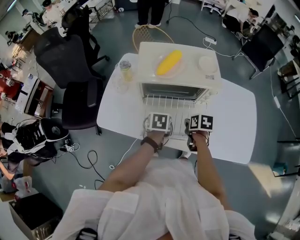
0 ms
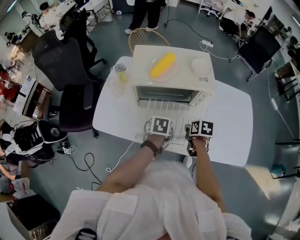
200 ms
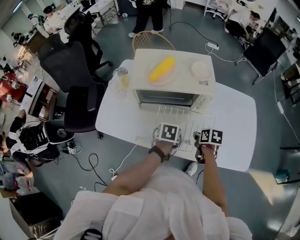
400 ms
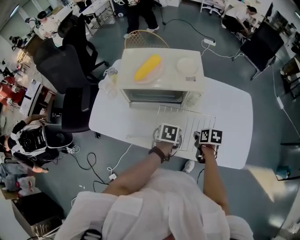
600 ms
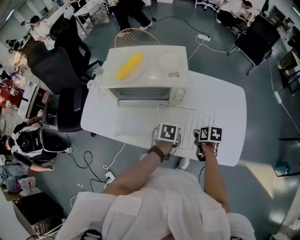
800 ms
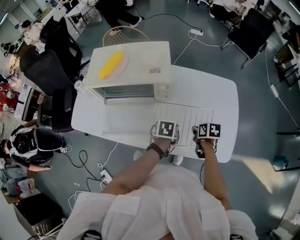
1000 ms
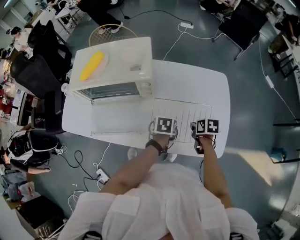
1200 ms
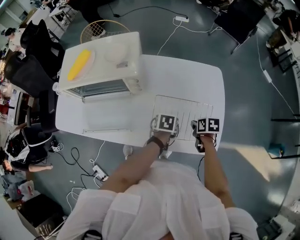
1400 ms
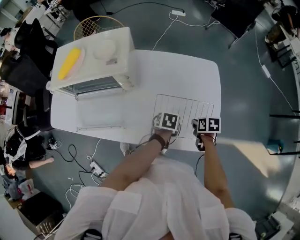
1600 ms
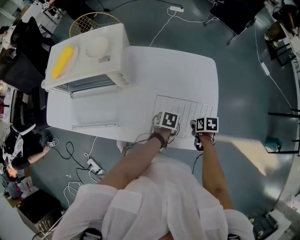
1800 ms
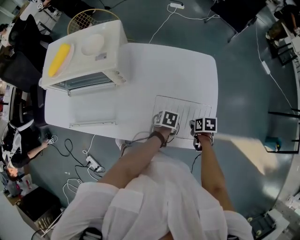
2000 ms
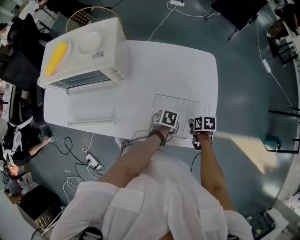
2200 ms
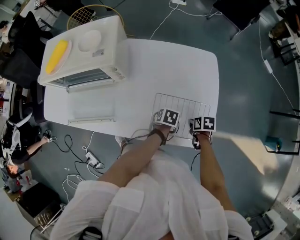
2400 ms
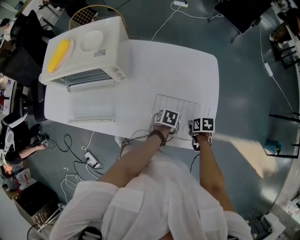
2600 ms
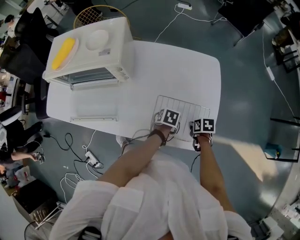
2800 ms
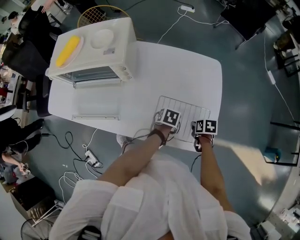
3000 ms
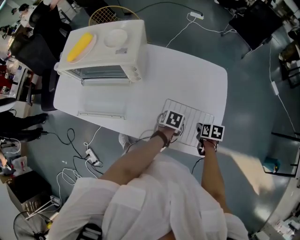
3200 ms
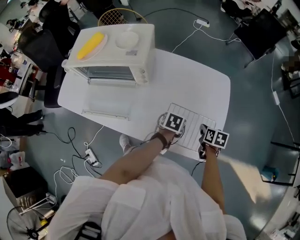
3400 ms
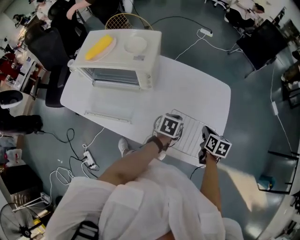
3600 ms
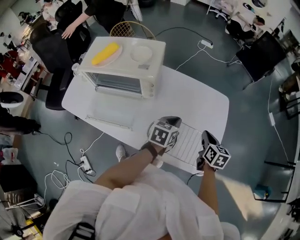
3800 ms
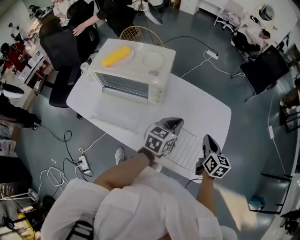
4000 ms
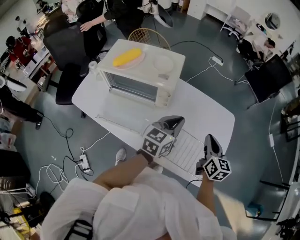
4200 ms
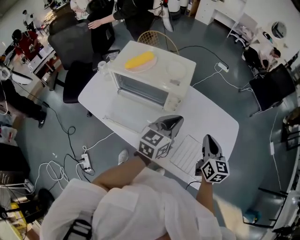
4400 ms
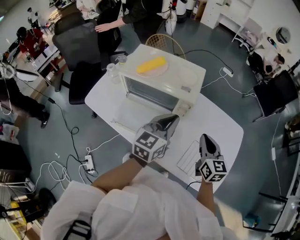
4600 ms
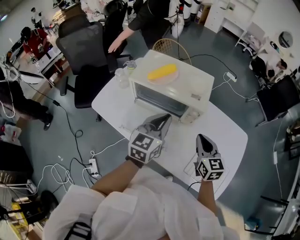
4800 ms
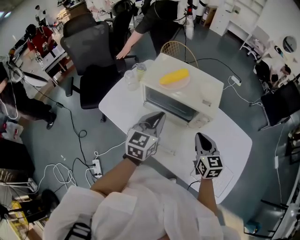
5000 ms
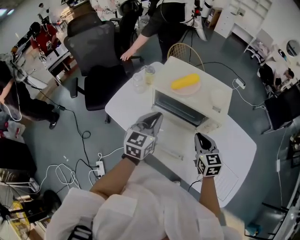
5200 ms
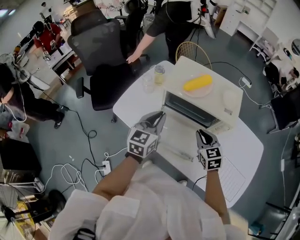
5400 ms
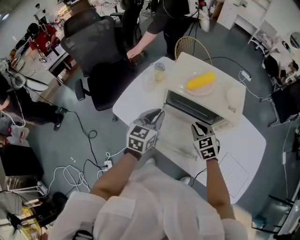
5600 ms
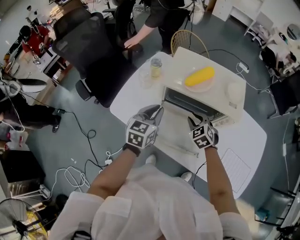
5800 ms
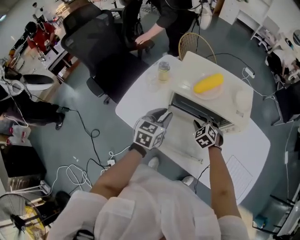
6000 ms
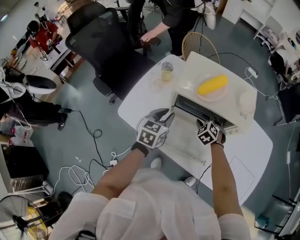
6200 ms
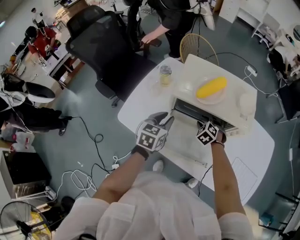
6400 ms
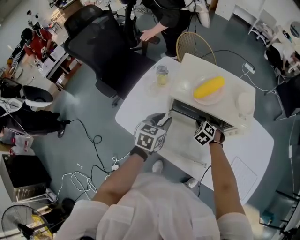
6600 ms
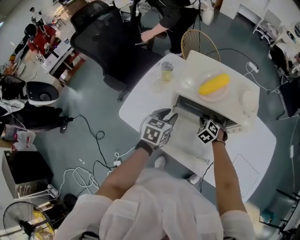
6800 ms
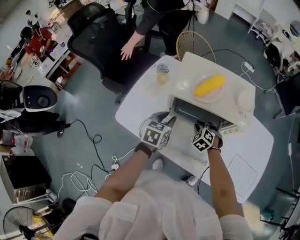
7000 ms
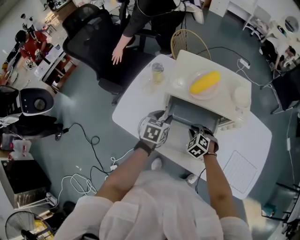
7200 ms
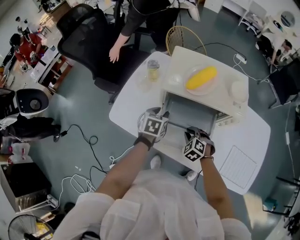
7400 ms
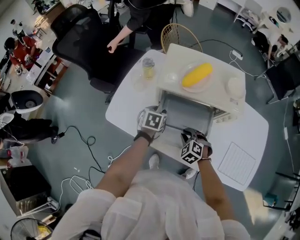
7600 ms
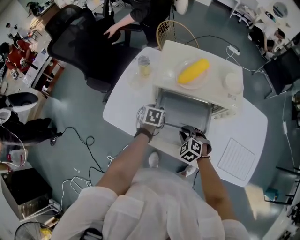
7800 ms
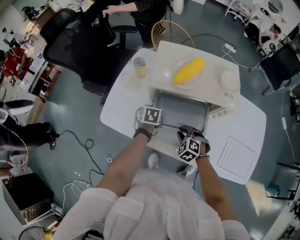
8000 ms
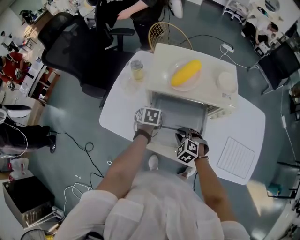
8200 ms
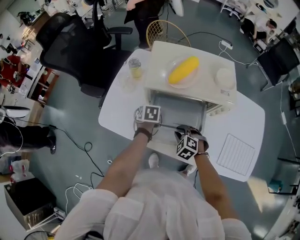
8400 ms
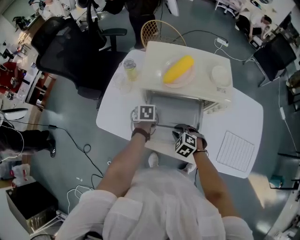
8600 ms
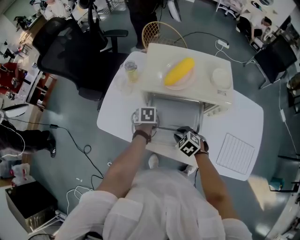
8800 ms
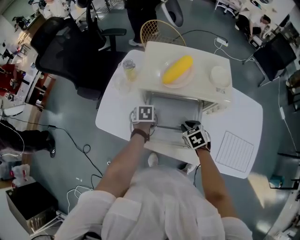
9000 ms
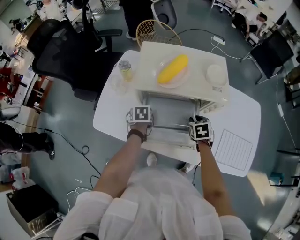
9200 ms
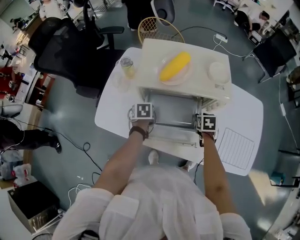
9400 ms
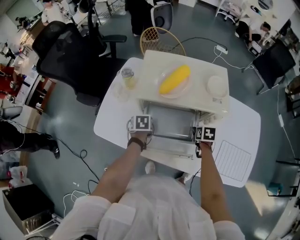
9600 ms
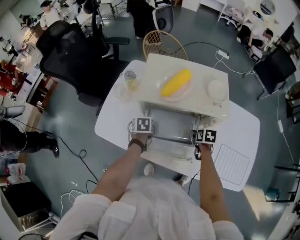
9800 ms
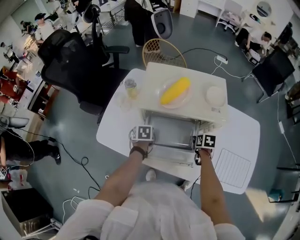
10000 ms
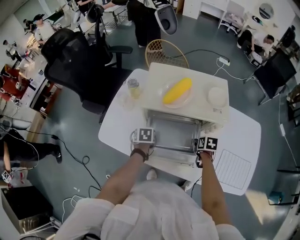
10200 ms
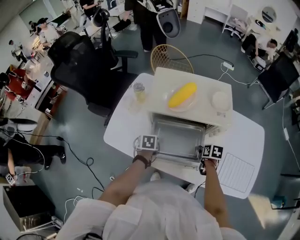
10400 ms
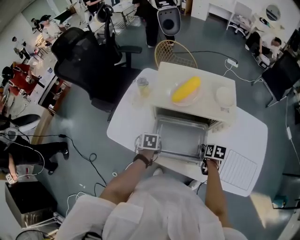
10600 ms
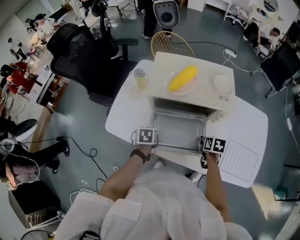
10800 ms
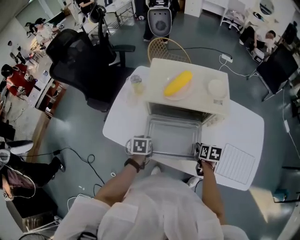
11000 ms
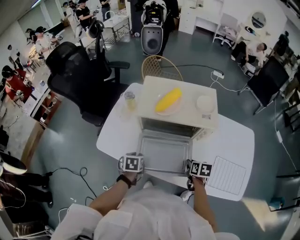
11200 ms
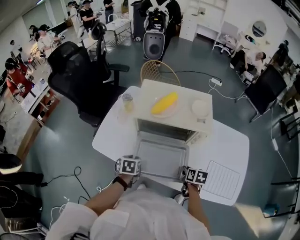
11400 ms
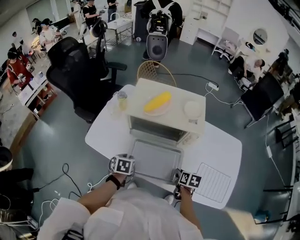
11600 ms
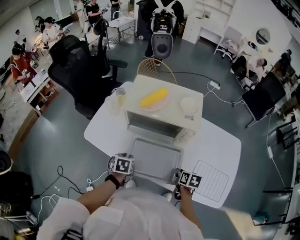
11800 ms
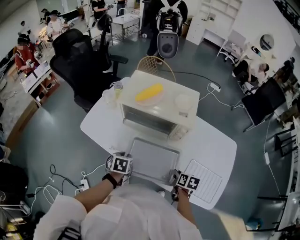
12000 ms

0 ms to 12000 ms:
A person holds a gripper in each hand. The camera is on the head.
0 ms to 1600 ms: Both grippers are carried to the right, some 50 cm.
1600 ms to 3000 ms: The right gripper moves roughly 5 cm.
3000 ms to 4400 ms: The grippers both shift upward and to the left by roughly 35 cm. The left gripper points its fingers approximately 60 degrees further upward. The right gripper angles its fingers upward, by roughly 50 degrees.
4400 ms to 6000 ms: The left gripper is displaced to the left by approximately 35 cm, and turns by some 20 degrees; the right gripper is displaced to the left, forward and downward by some 40 cm, rotates around the line of its fingers by roughly 50 degrees, counterclockwise from behind, and opens.
6000 ms to 7600 ms: The right gripper is displaced backward and downward by about 10 cm. The left gripper is displaced downward by roughly 15 cm, and swivels some 20 degrees.
7600 ms to 9000 ms: The right gripper moves to the right, some 5 cm, and rotates approximately 40 degrees.
9000 ms to 10400 ms: The right gripper is displaced to the right by roughly 10 cm, and twists approximately 40 degrees clockwise, seen from behind.
10400 ms to 12000 ms: The right gripper moves backward and to the right, some 15 cm, while the left gripper goes some 20 cm backward, to the right and upward.

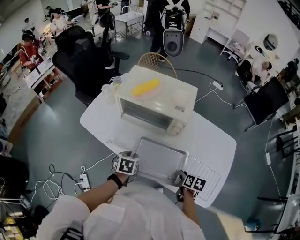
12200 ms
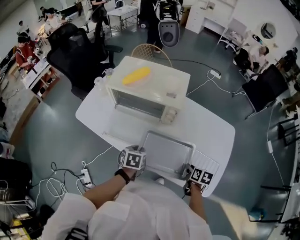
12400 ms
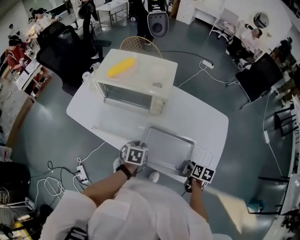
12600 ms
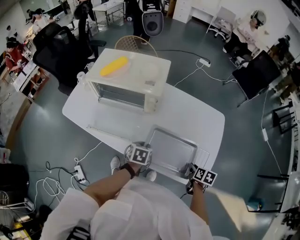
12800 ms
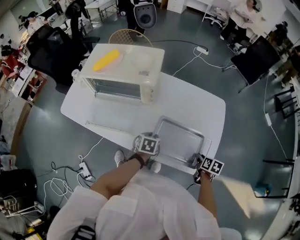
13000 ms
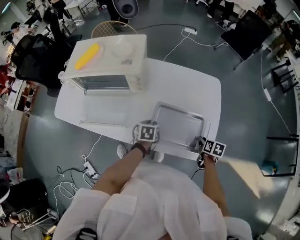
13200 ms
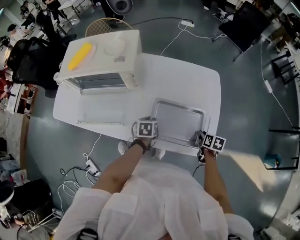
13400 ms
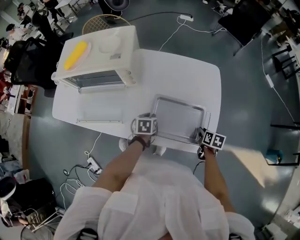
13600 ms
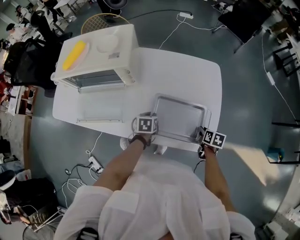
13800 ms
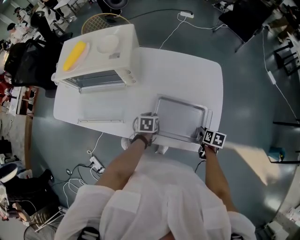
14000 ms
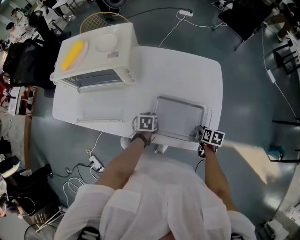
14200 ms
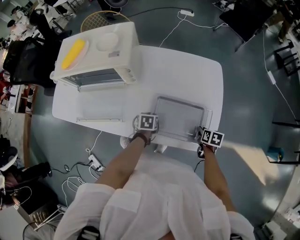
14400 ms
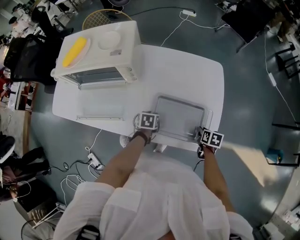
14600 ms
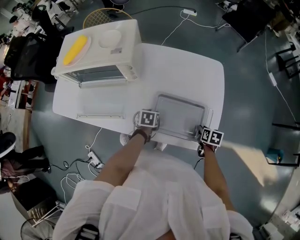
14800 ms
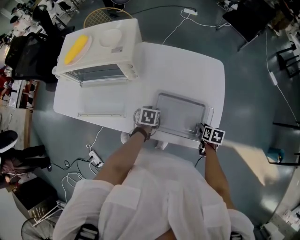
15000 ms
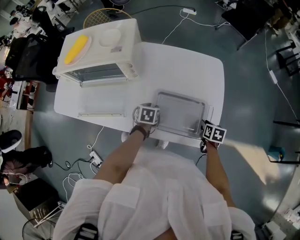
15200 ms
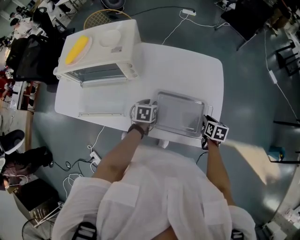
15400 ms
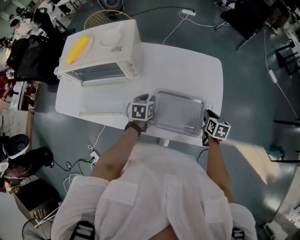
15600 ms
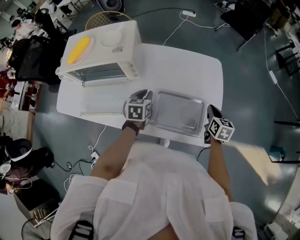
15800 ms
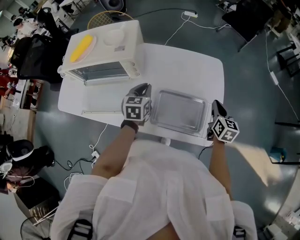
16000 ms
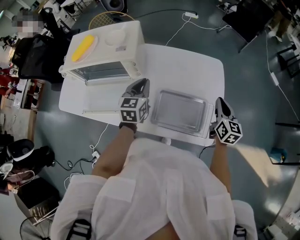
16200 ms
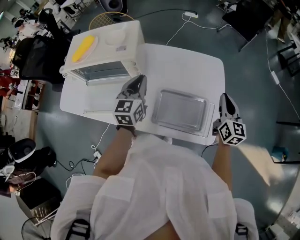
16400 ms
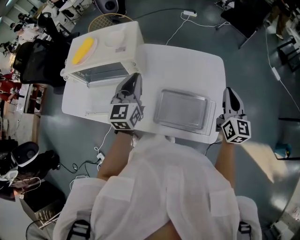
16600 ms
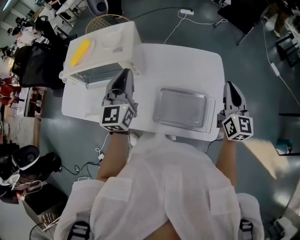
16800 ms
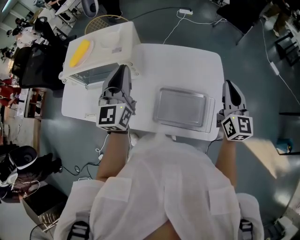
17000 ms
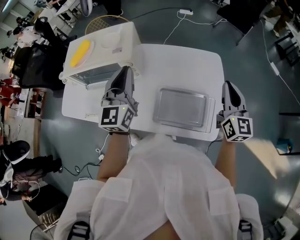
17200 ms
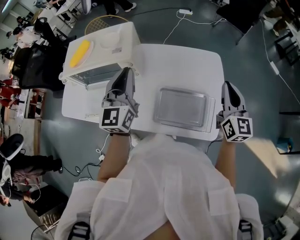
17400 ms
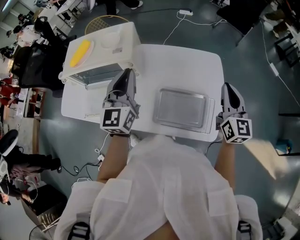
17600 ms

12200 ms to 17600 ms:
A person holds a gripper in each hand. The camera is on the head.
12200 ms to 13600 ms: The grippers both shift to the right by about 30 cm.
13600 ms to 15000 ms: The grippers stay close to where they were, moving slightly.
15000 ms to 16200 ms: Both grippers move upward, roughly 25 cm. The right gripper tilts its fingers about 40 degrees upward, and closes; the left gripper tilts its fingers some 40 degrees upward, and closes.
16200 ms to 17600 ms: Both grippers move upward, approximately 15 cm. The left gripper changes its angle by about 30 degrees.

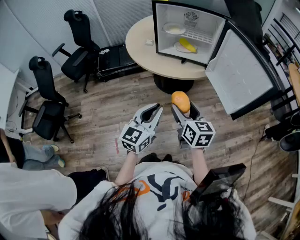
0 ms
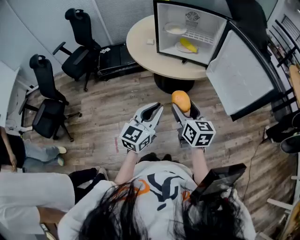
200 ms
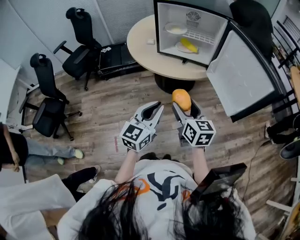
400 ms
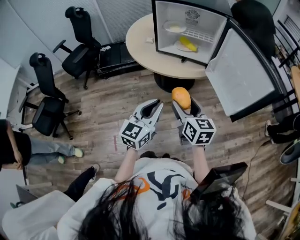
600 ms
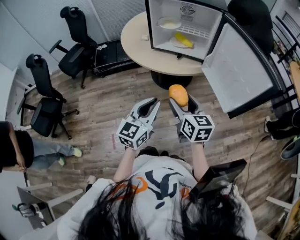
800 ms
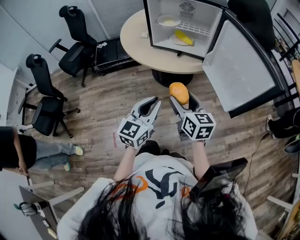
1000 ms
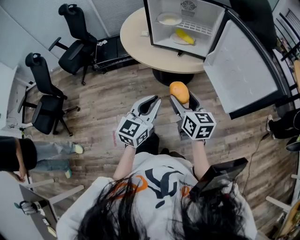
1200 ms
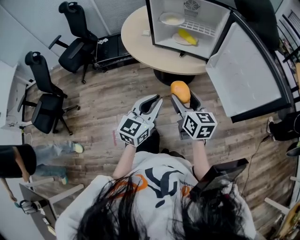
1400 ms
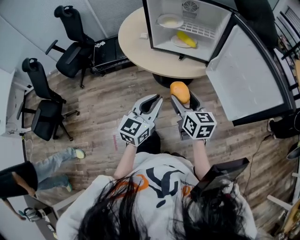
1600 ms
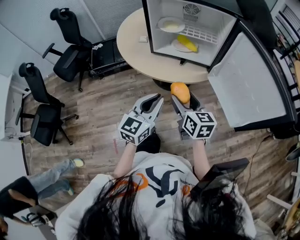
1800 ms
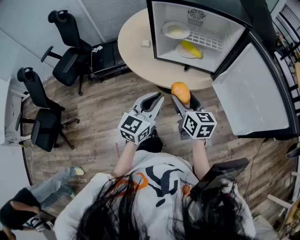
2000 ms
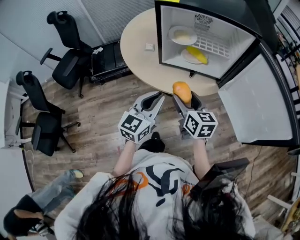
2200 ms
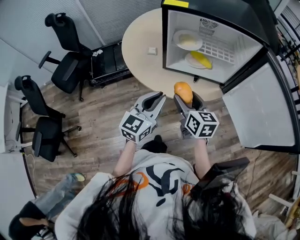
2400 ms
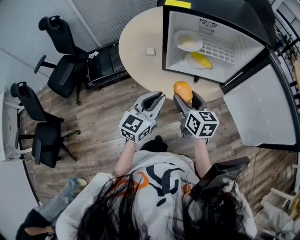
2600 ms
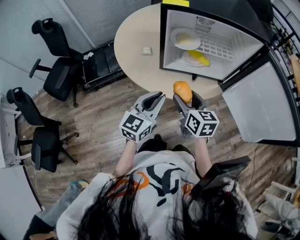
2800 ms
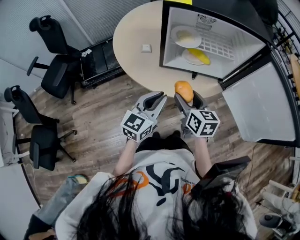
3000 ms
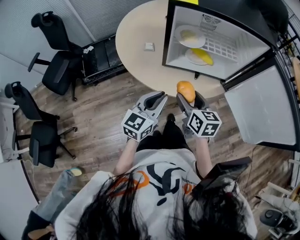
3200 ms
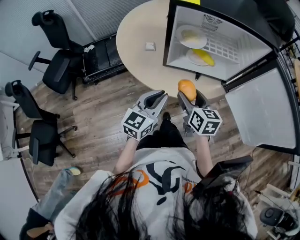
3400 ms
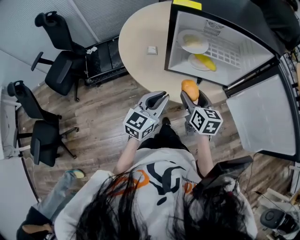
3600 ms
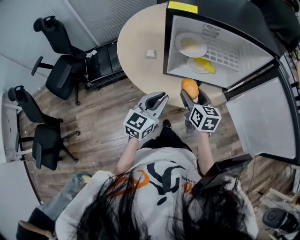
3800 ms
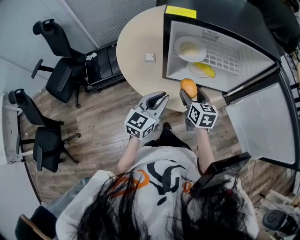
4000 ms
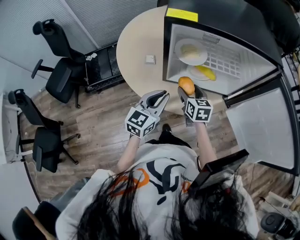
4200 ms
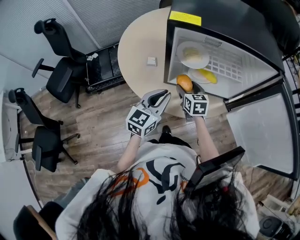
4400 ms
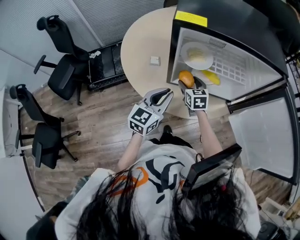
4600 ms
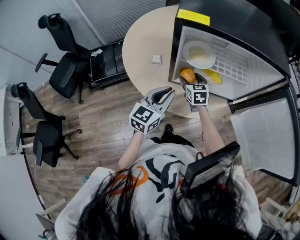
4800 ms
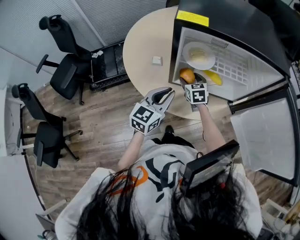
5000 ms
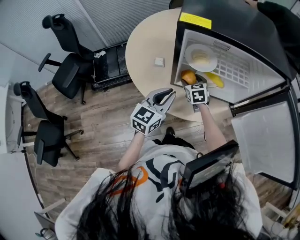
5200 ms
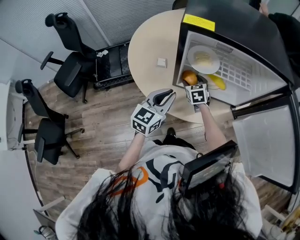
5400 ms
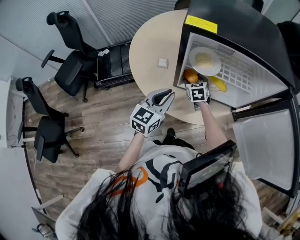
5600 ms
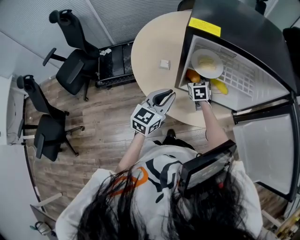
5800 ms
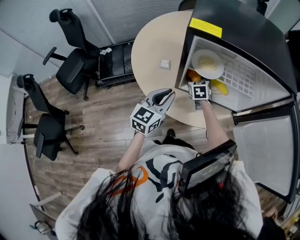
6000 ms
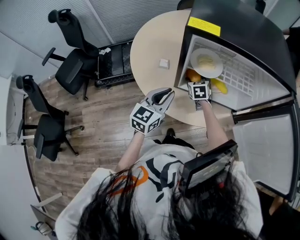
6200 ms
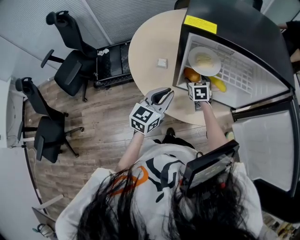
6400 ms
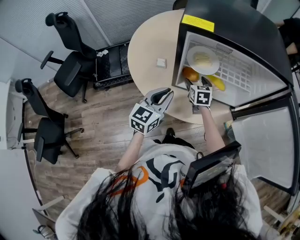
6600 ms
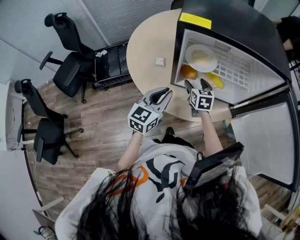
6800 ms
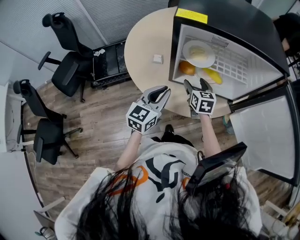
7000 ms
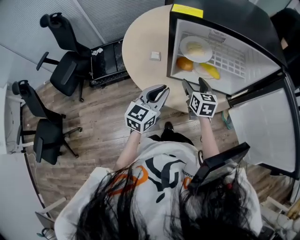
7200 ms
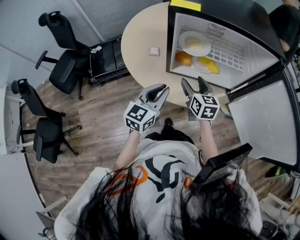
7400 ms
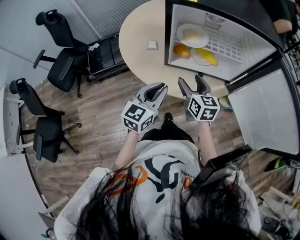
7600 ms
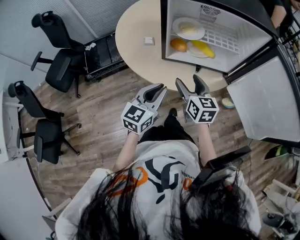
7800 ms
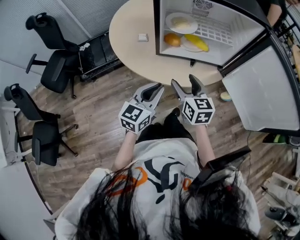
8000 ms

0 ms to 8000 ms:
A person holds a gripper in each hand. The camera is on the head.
0 ms to 1600 ms: The two grippers go about 10 cm forward.
1600 ms to 3200 ms: Both grippers travel together forward and to the left, approximately 20 cm.
3200 ms to 4800 ms: The right gripper moves forward and downward, roughly 25 cm, and swivels some 20 degrees. The left gripper heads forward, covering about 10 cm.
6400 ms to 8000 ms: The left gripper moves backward, about 15 cm; the right gripper is displaced backward and upward by approximately 30 cm, and turns by about 20 degrees.
